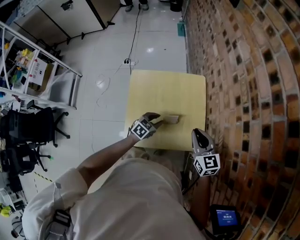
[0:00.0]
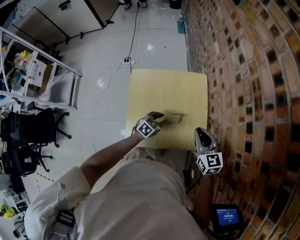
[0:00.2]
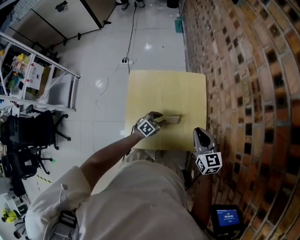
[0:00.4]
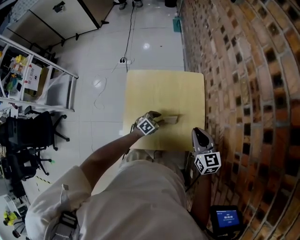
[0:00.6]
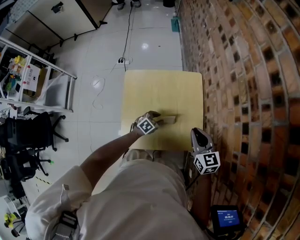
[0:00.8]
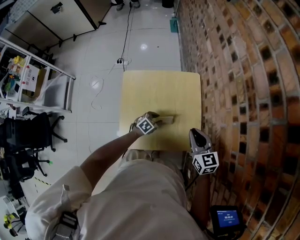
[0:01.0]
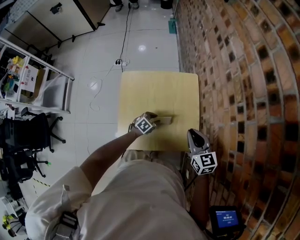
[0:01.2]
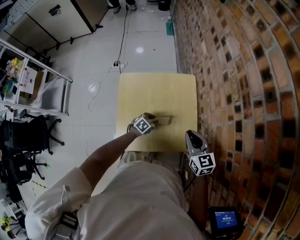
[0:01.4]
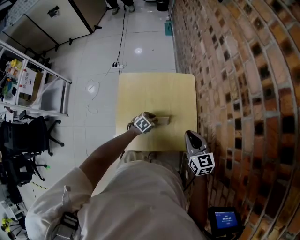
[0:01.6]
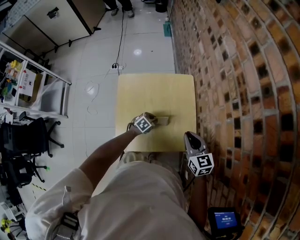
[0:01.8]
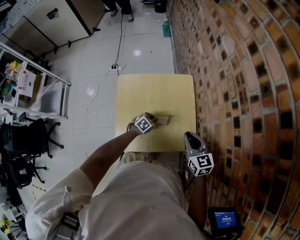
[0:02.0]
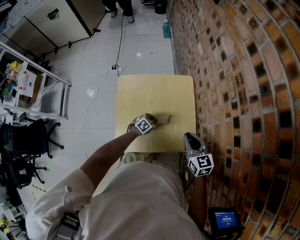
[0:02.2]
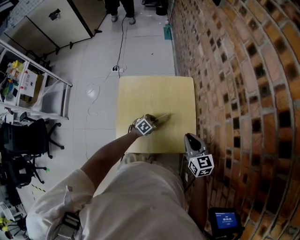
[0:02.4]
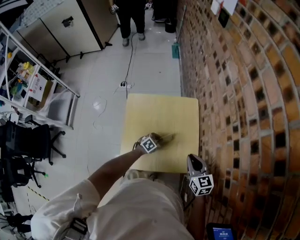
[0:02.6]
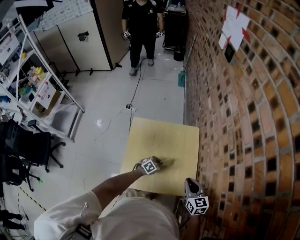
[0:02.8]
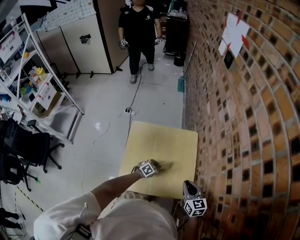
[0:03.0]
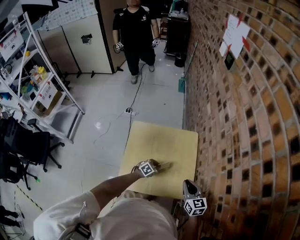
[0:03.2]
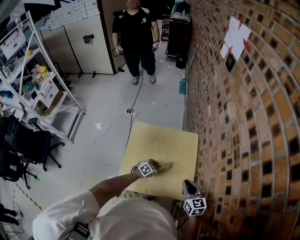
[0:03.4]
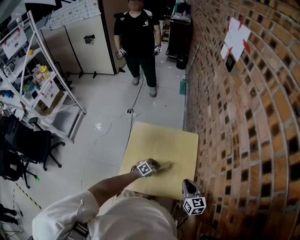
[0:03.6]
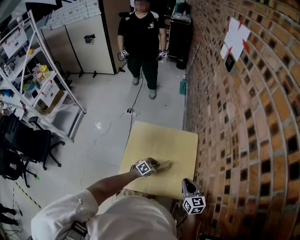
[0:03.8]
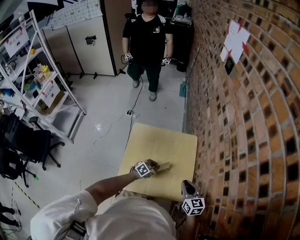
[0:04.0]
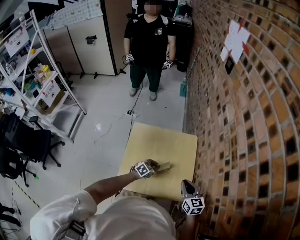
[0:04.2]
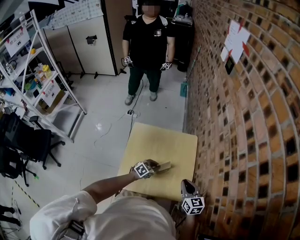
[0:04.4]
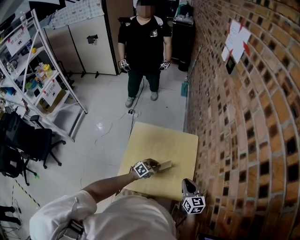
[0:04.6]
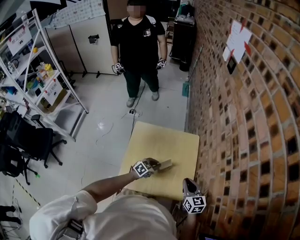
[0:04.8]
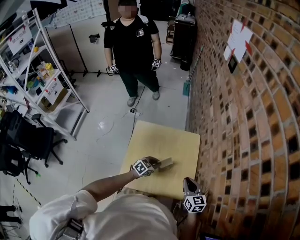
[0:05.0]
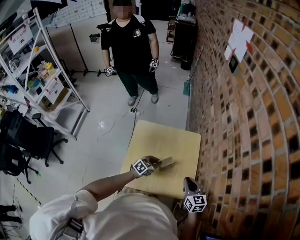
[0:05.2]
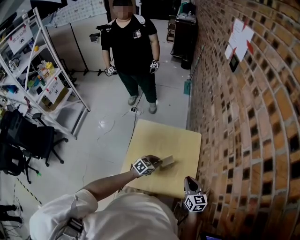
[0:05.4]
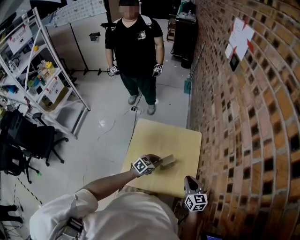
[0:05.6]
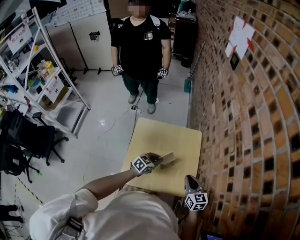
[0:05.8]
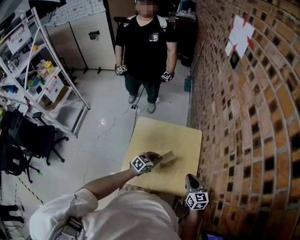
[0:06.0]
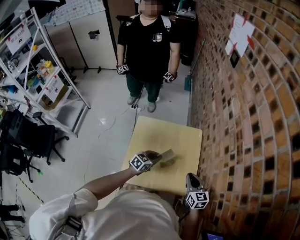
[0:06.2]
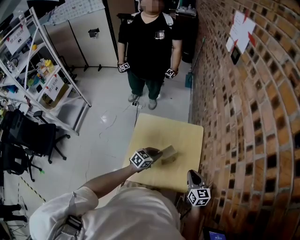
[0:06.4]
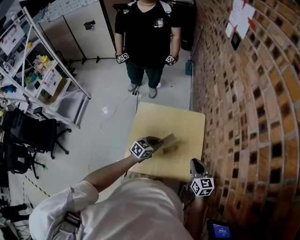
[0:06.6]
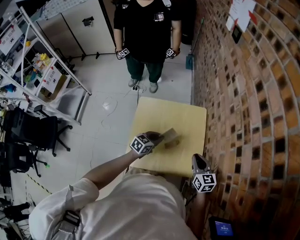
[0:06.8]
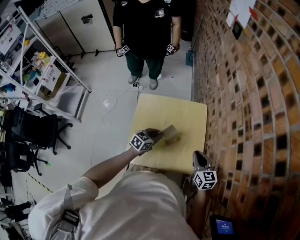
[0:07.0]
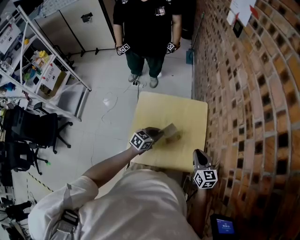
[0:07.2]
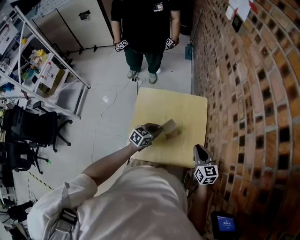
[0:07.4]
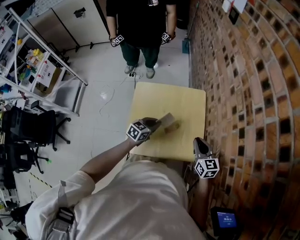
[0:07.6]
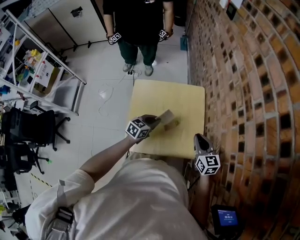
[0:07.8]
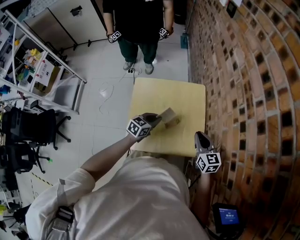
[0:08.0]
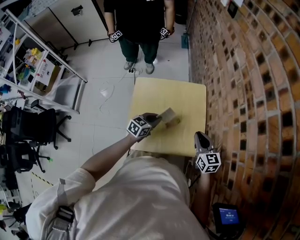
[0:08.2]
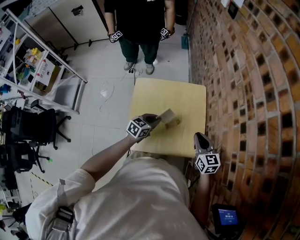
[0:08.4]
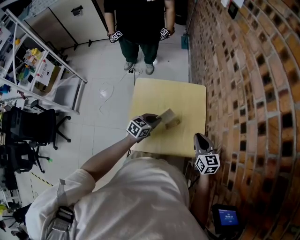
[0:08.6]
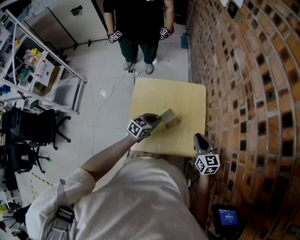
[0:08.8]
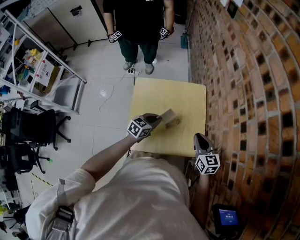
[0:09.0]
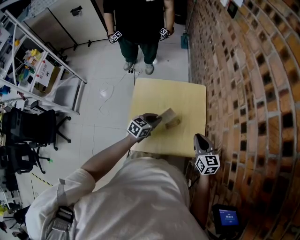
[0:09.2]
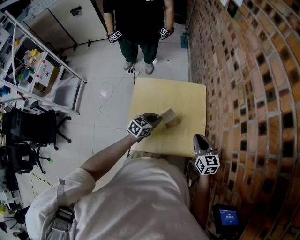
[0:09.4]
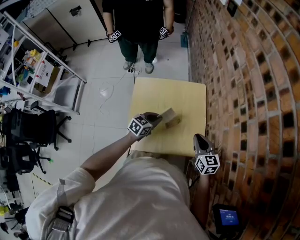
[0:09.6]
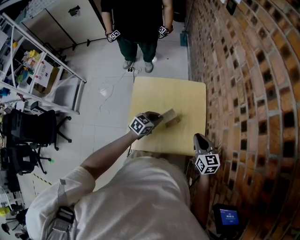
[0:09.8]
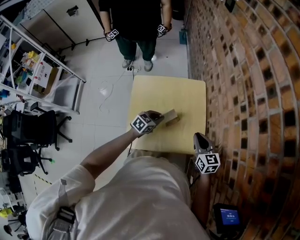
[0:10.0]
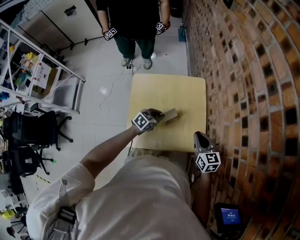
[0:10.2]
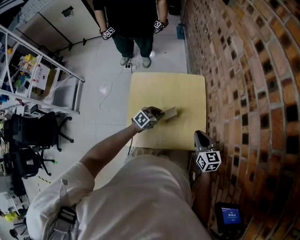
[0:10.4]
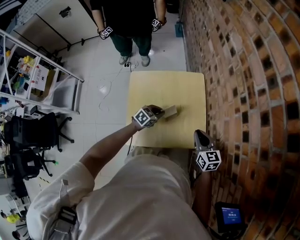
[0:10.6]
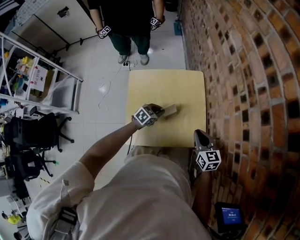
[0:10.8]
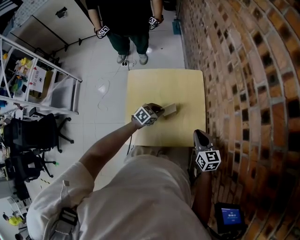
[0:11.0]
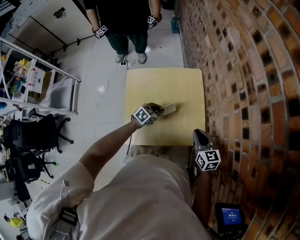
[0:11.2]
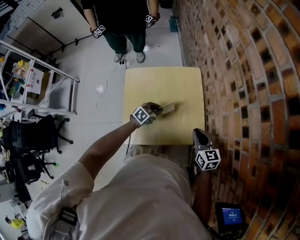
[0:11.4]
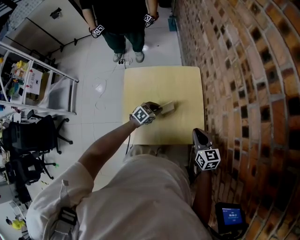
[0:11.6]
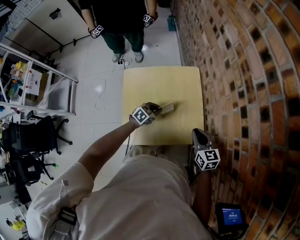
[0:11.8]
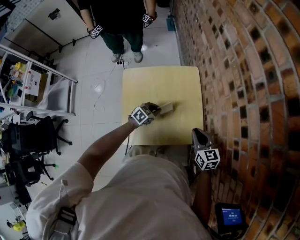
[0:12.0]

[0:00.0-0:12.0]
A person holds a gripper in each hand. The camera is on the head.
0:00.0 to 0:01.6: The left gripper goes about 10 cm downward.
0:01.6 to 0:03.0: The left gripper closes.
0:03.0 to 0:04.4: The left gripper is displaced upward by about 5 cm.
0:04.4 to 0:06.0: The left gripper moves upward, roughly 10 cm.
0:06.0 to 0:07.6: The grippers move only a little.
0:07.6 to 0:09.0: Both grippers stay about where they are.
0:09.0 to 0:10.4: The left gripper goes about 5 cm downward.
0:10.4 to 0:12.0: There are only small adjustments of the grippers.

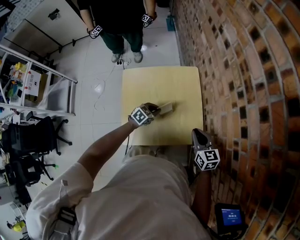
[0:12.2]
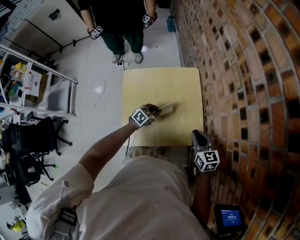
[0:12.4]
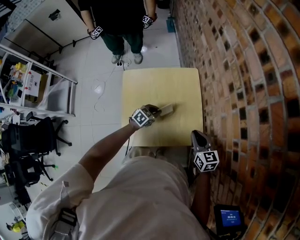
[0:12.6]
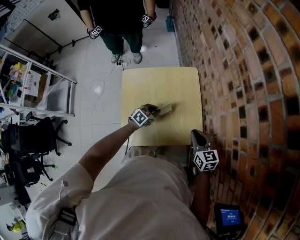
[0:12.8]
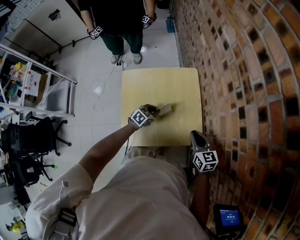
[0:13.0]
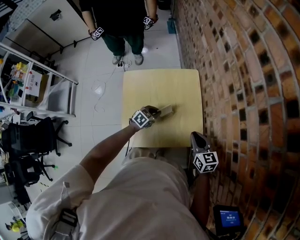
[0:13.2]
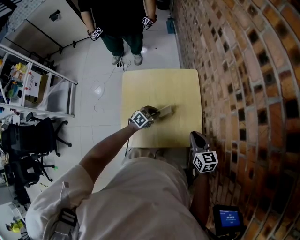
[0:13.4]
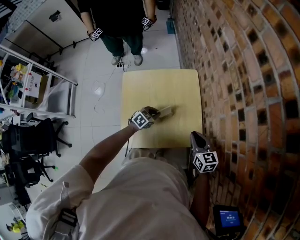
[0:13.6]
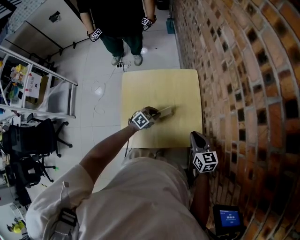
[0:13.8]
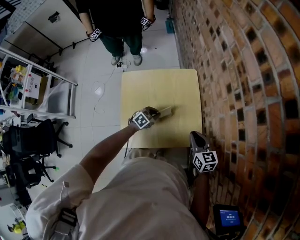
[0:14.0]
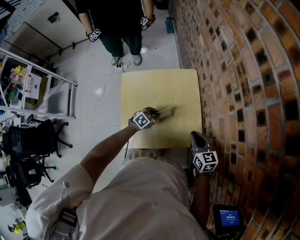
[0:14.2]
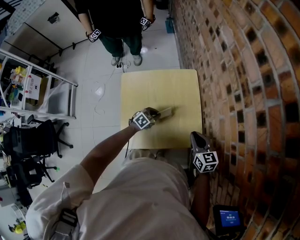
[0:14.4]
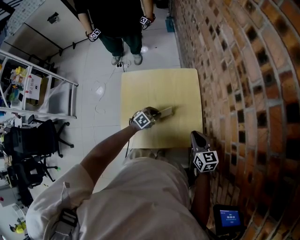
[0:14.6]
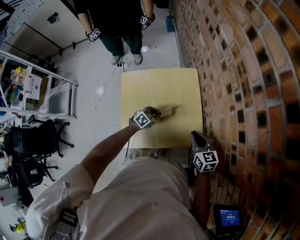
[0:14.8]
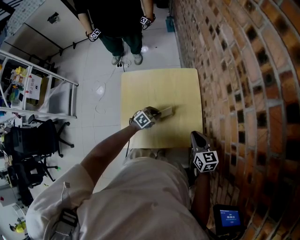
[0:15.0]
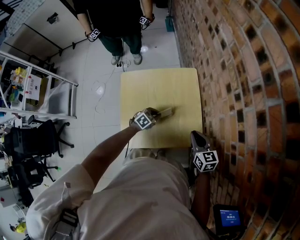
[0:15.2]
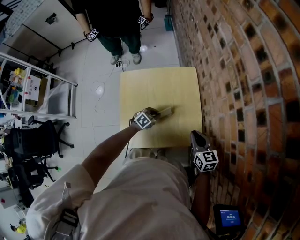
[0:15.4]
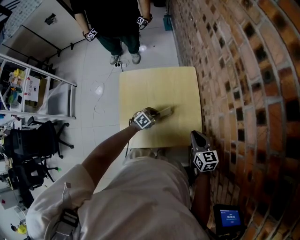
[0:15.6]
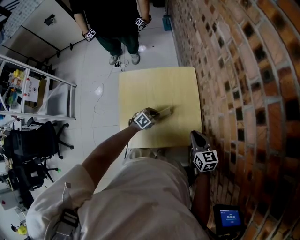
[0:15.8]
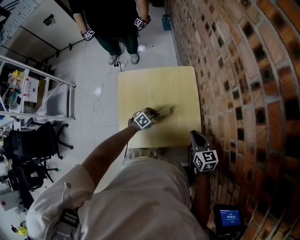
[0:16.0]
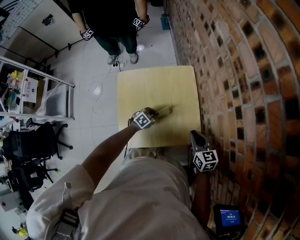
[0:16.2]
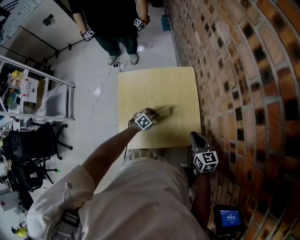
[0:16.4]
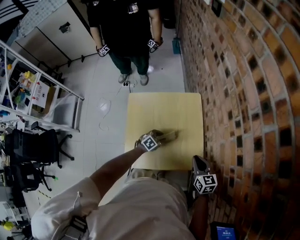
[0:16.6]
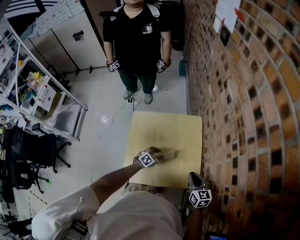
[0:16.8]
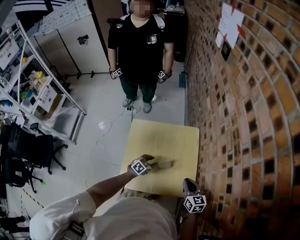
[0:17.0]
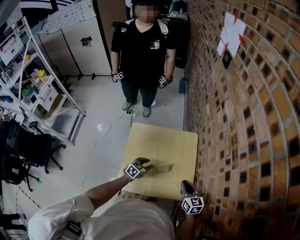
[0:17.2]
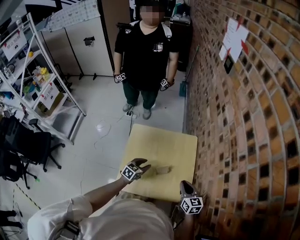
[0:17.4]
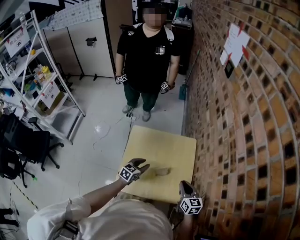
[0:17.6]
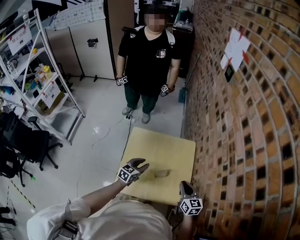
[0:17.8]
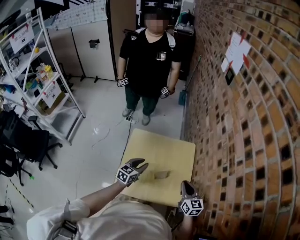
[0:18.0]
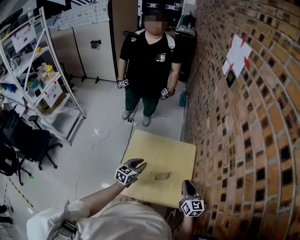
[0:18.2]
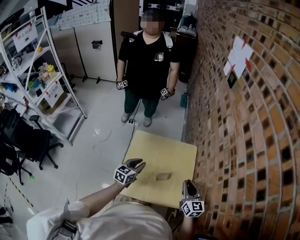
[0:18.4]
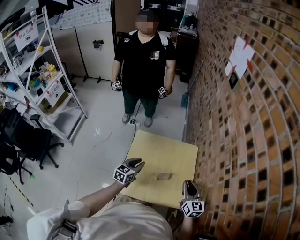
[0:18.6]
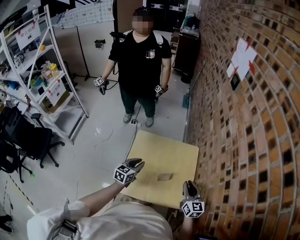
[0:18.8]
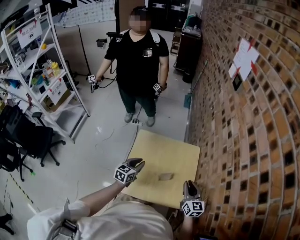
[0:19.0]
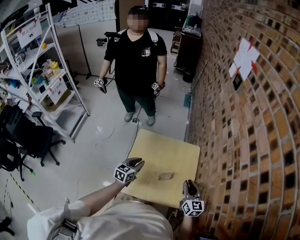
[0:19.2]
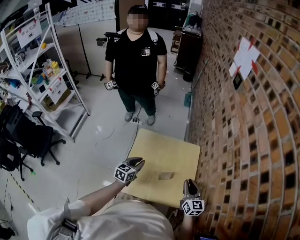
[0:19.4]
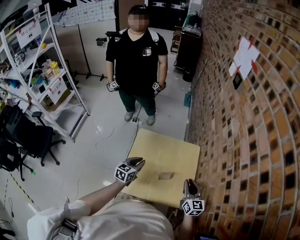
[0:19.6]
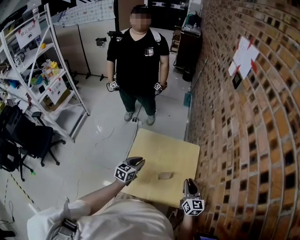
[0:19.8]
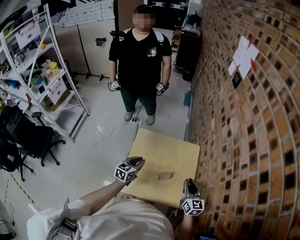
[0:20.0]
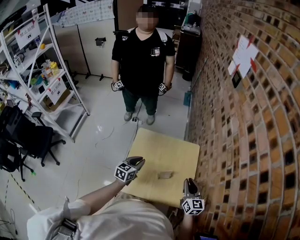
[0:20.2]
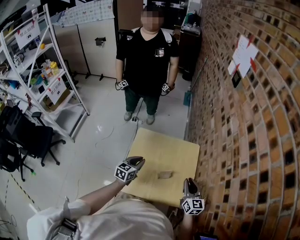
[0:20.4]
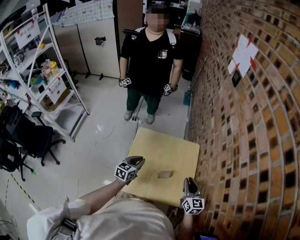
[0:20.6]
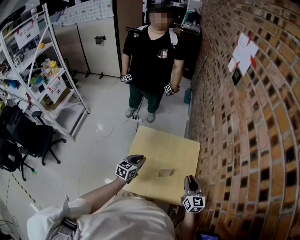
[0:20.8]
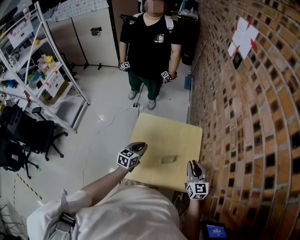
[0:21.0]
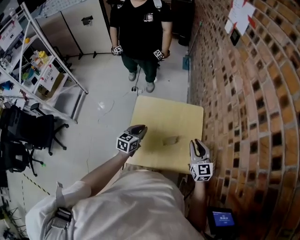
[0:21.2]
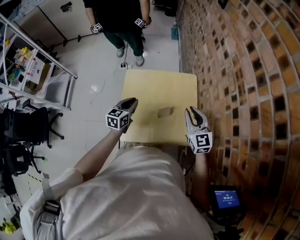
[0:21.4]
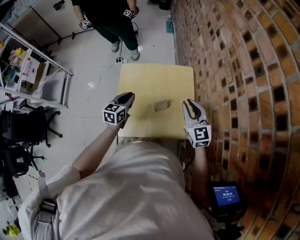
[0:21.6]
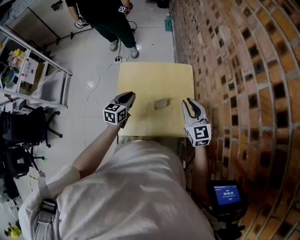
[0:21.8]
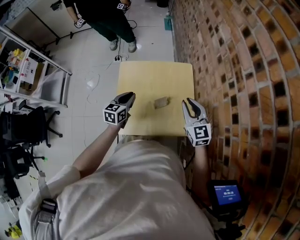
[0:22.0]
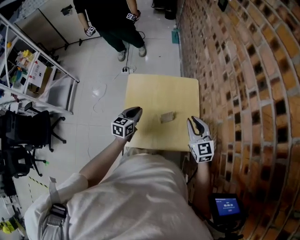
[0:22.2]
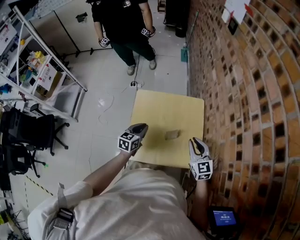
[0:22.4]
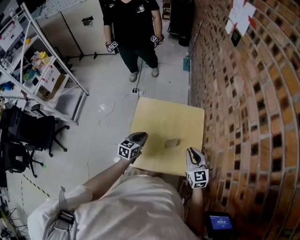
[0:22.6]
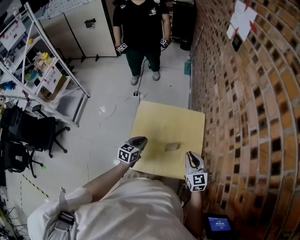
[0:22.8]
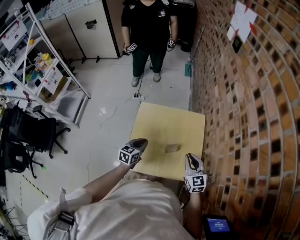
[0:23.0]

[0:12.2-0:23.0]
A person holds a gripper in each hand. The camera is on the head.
0:12.2 to 0:13.8: The two grippers keep their place.
0:13.8 to 0:15.2: There are only small adjustments of the grippers.
0:15.2 to 0:16.8: The left gripper opens.
0:16.8 to 0:18.4: The left gripper heads upward and to the left, covering approximately 25 cm, and swivels approximately 40 degrees, while the right gripper moves upward, roughly 10 cm.
0:18.4 to 0:20.0: The grippers stay close to where they were, moving slightly.
0:20.0 to 0:21.4: The right gripper shifts by about 5 cm.
0:21.4 to 0:23.0: The right gripper travels downward by roughly 5 cm. The left gripper changes place by some 5 cm.

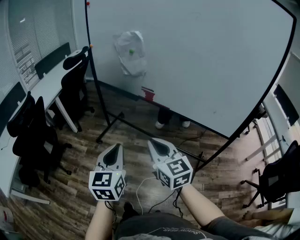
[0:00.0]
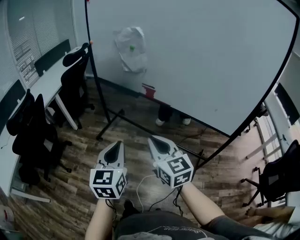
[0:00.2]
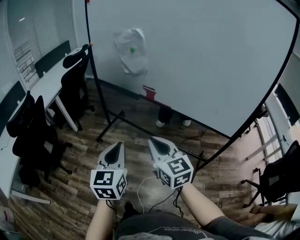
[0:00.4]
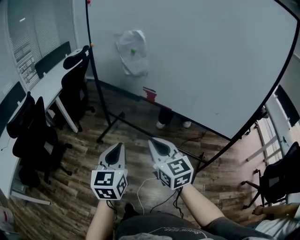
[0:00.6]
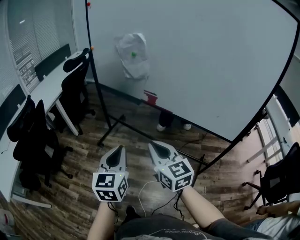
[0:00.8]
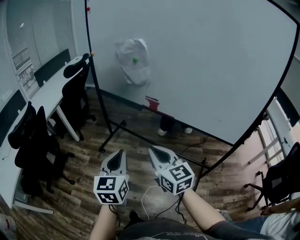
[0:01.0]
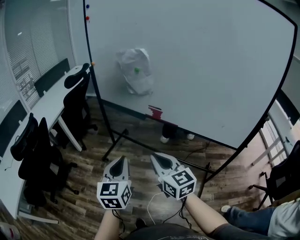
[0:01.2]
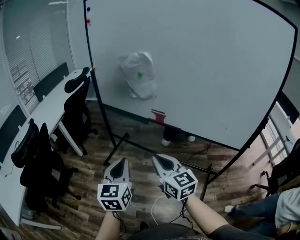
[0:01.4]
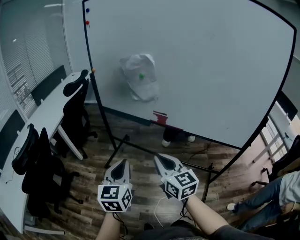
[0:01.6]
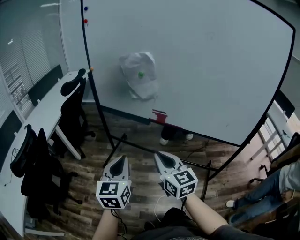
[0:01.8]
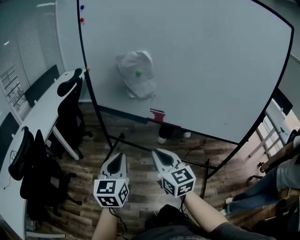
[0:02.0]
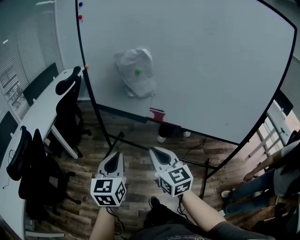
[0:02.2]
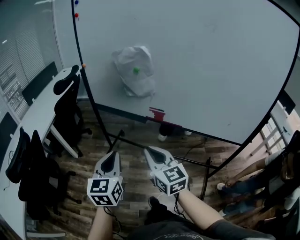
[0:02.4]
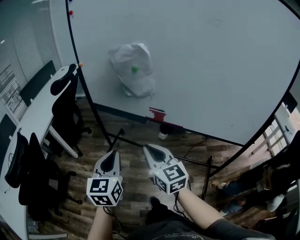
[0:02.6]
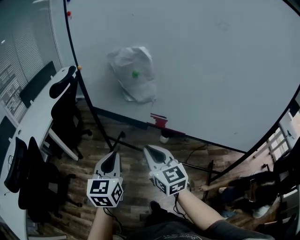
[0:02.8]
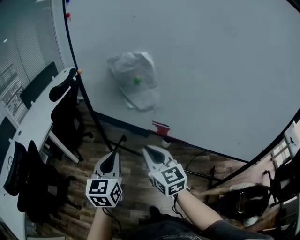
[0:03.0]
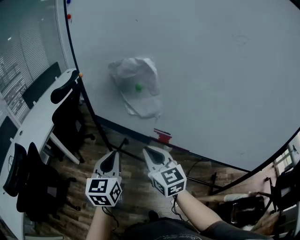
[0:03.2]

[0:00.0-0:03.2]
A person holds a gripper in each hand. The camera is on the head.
0:00.0 to 0:01.6: Both grippers move forward and to the left, some 15 cm.
0:01.6 to 0:03.2: The two grippers go roughly 20 cm forward.
